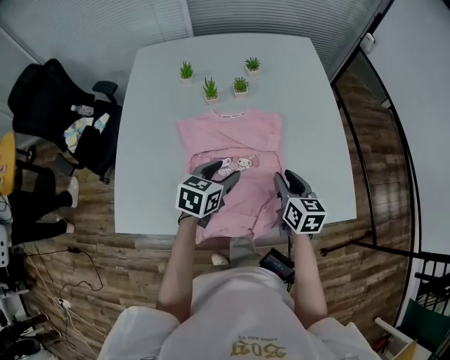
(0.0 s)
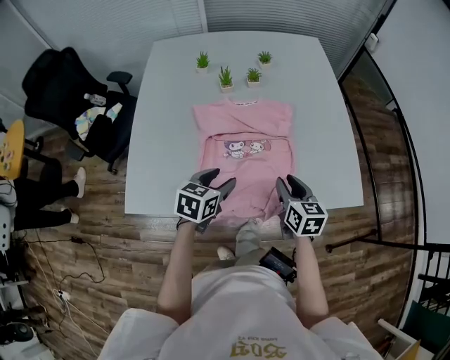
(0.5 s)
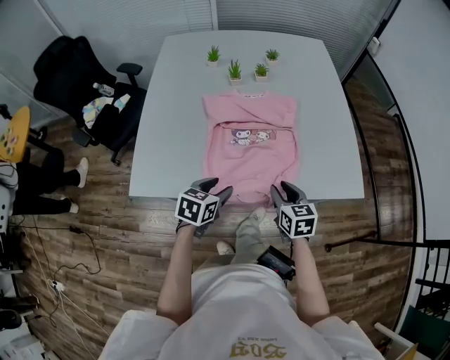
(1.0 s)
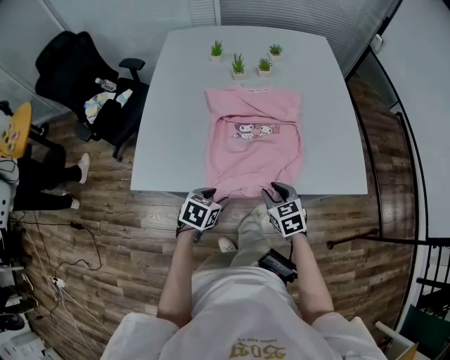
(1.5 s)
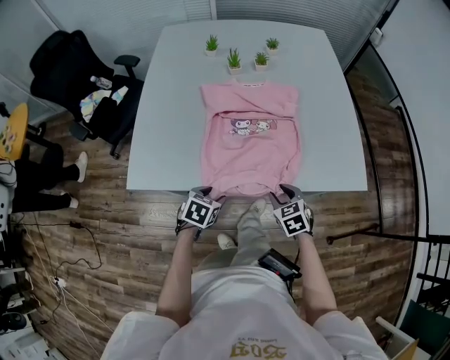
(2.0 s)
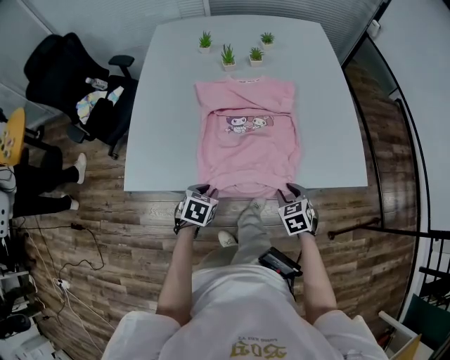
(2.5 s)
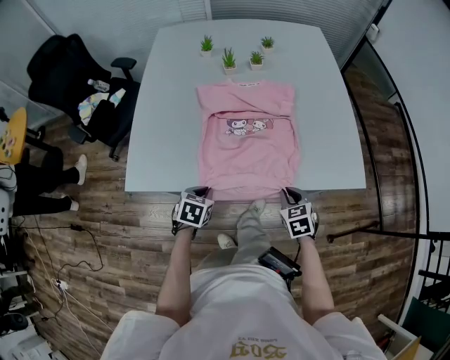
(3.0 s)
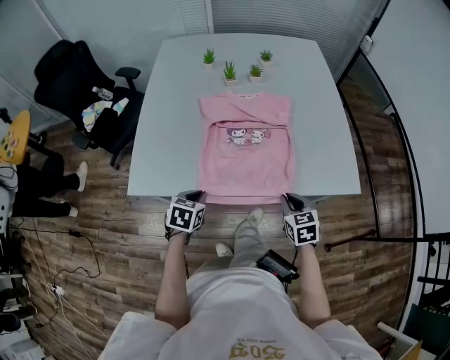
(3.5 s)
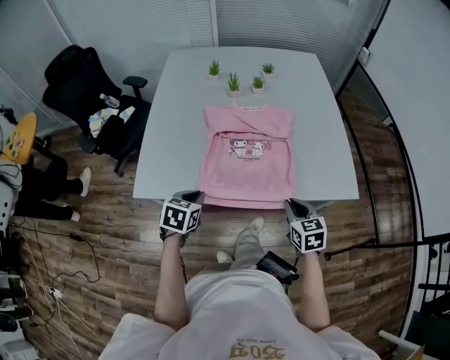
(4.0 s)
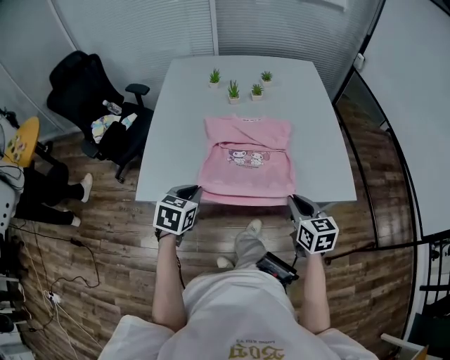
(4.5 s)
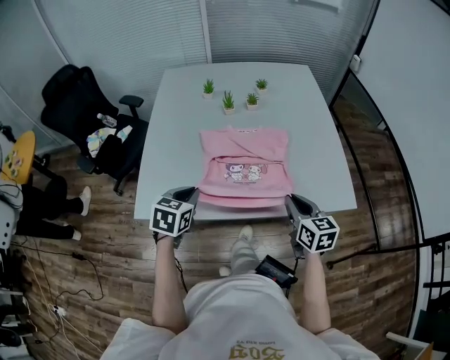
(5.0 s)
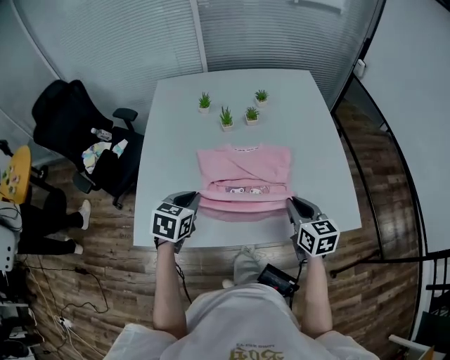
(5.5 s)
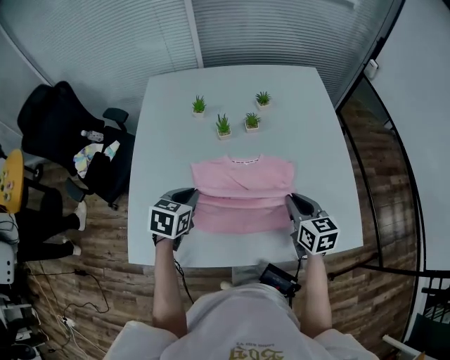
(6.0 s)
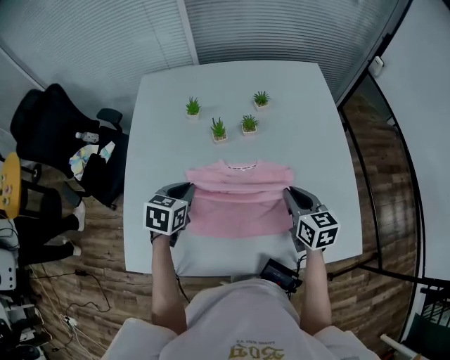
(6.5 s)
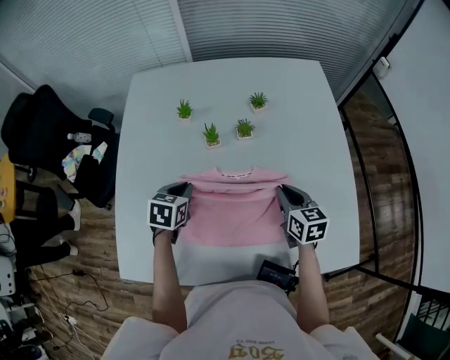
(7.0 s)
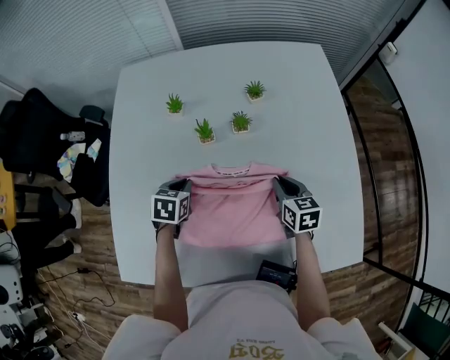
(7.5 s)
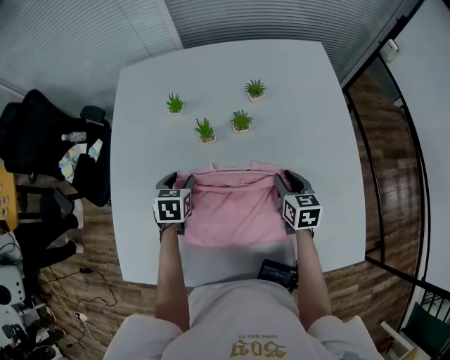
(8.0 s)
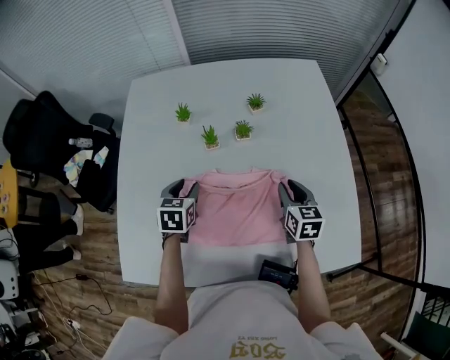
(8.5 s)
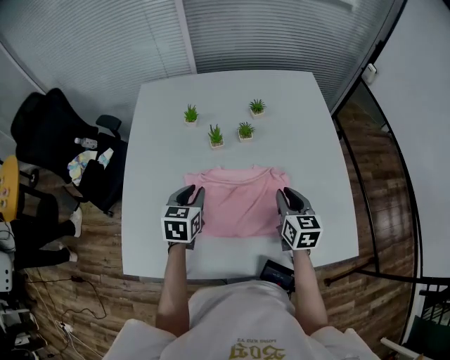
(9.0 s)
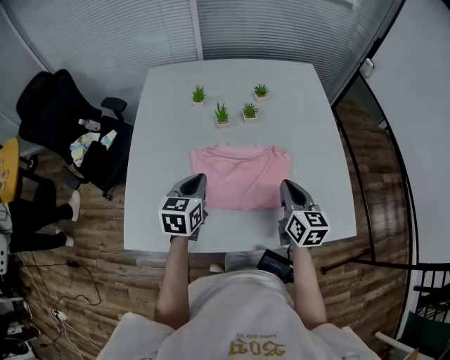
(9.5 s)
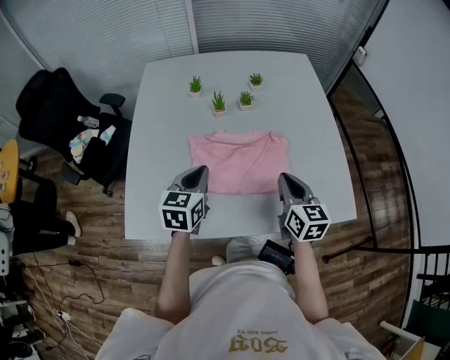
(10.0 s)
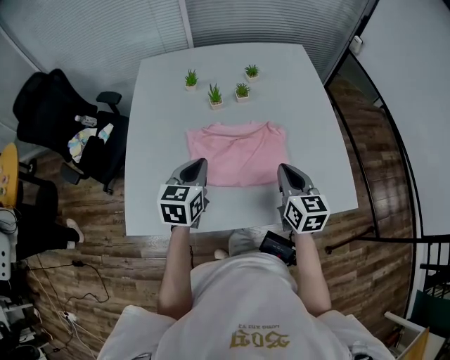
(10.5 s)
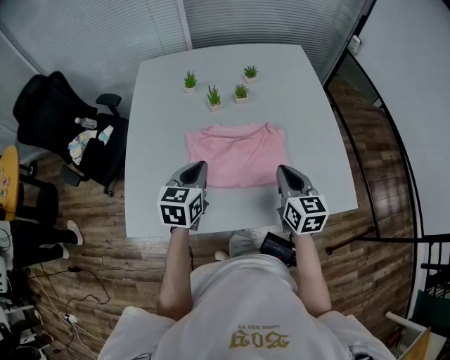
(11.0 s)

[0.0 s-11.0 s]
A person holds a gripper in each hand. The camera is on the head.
0.0 to 2.0 s: Both grippers travel together backward and downward, approximately 25 cm. The left gripper changes its angle by approximately 20 degrees. The right gripper rotates roughly 40 degrees.
2.0 to 3.5 s: The left gripper changes place by approximately 5 cm, and closes up. Meanwhile the right gripper shifts some 5 cm upward, and closes up.
3.5 to 5.5 s: Both grippers move forward and upward, roughly 20 cm. The right gripper changes its angle by some 20 degrees.
5.5 to 7.5 s: The two grippers go approximately 30 cm forward and downward.
7.5 to 9.0 s: The grippers both shift upward and backward by roughly 15 cm. The left gripper turns by about 20 degrees.
9.0 to 11.0 s: The grippers both shift backward and upward by some 15 cm.

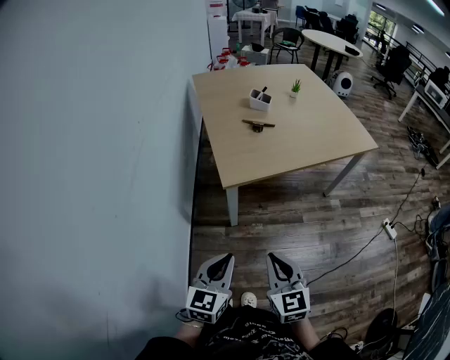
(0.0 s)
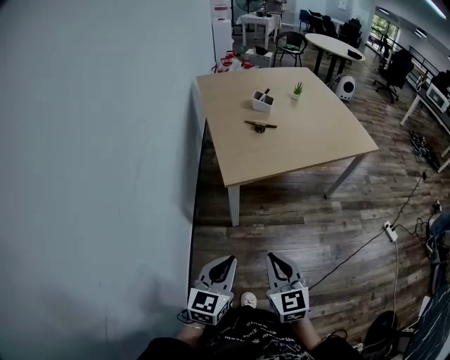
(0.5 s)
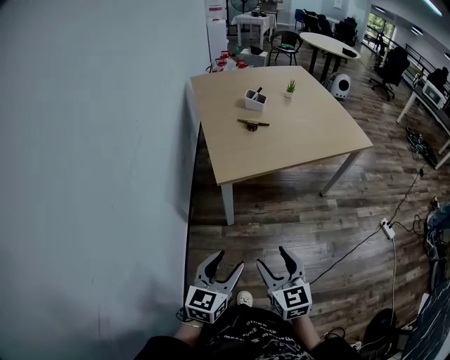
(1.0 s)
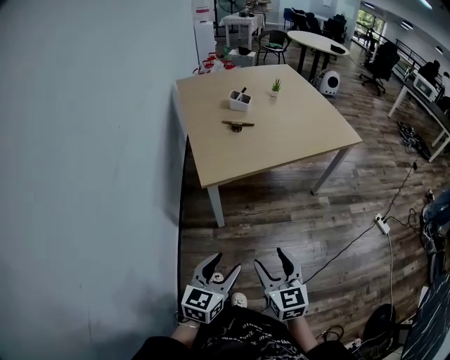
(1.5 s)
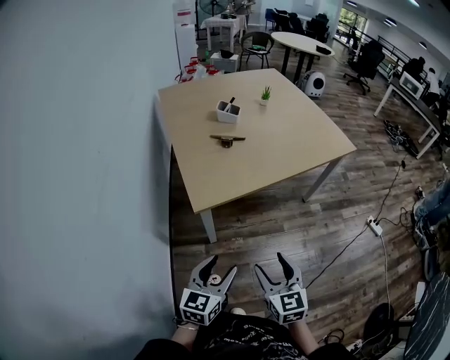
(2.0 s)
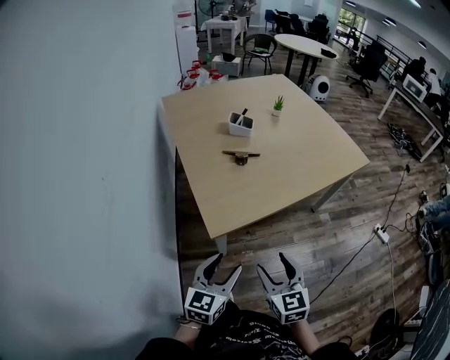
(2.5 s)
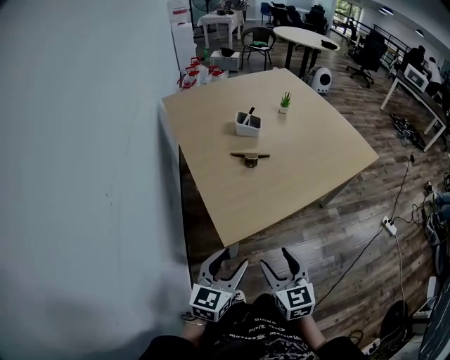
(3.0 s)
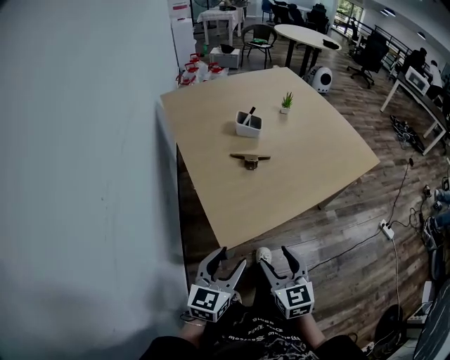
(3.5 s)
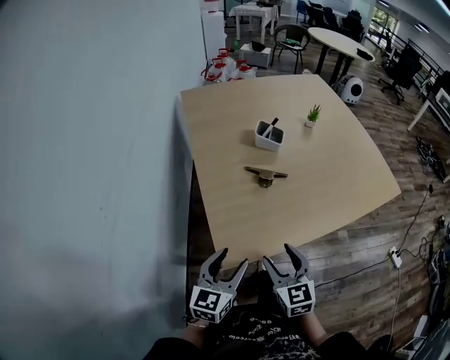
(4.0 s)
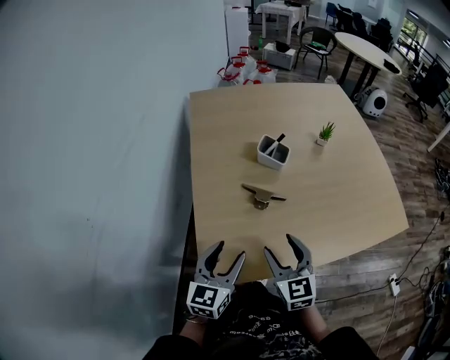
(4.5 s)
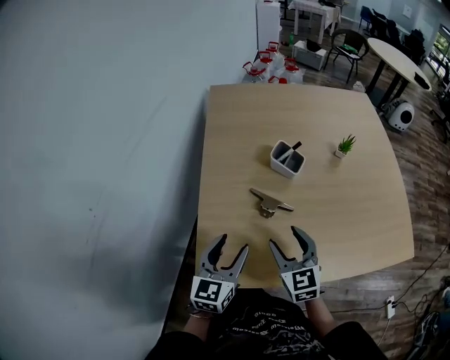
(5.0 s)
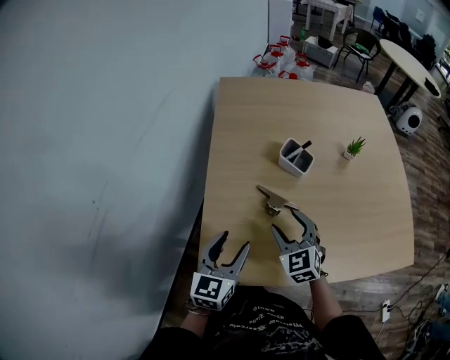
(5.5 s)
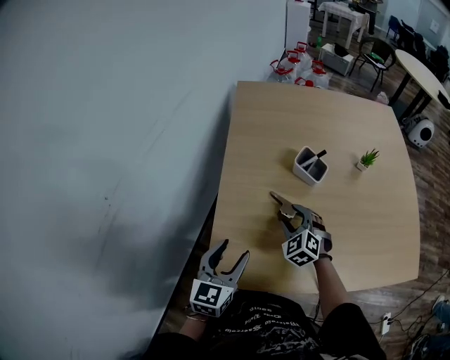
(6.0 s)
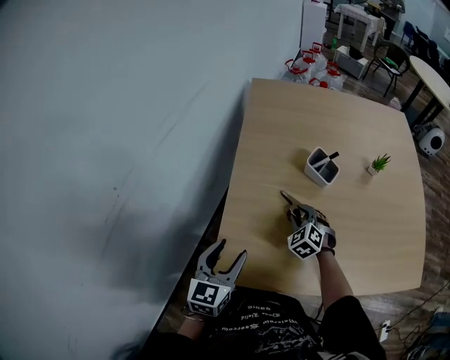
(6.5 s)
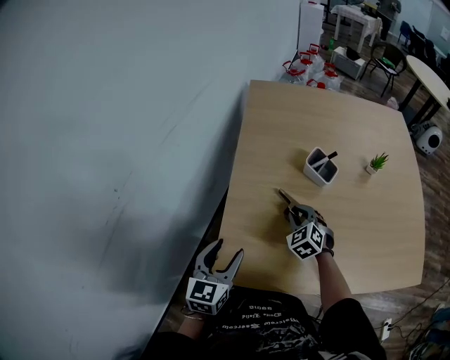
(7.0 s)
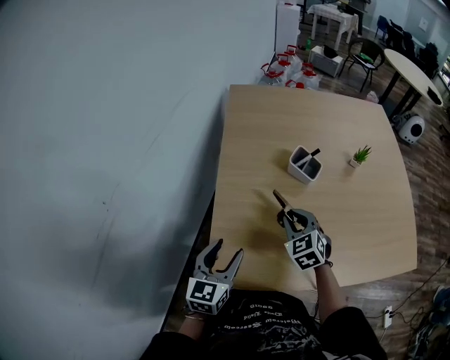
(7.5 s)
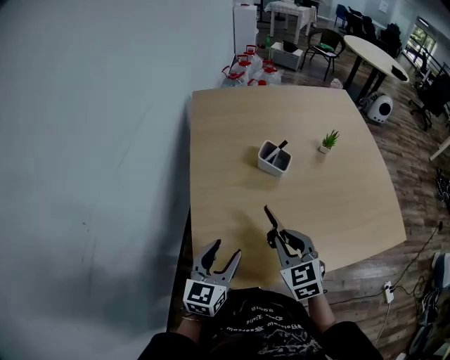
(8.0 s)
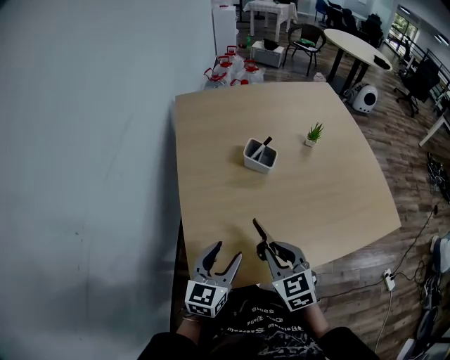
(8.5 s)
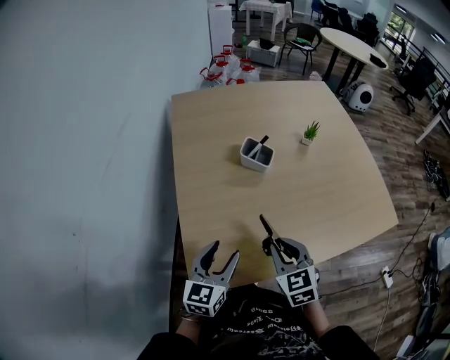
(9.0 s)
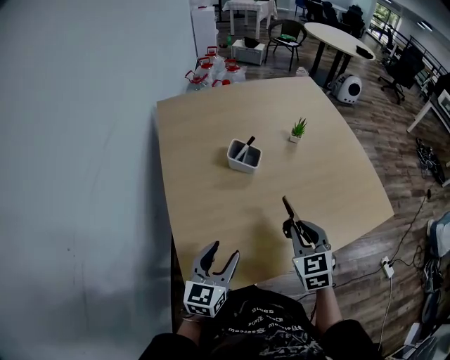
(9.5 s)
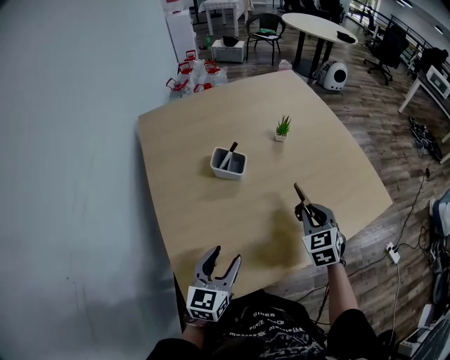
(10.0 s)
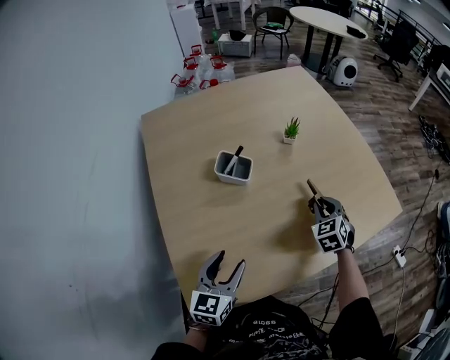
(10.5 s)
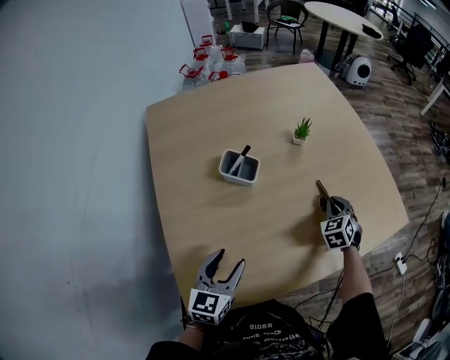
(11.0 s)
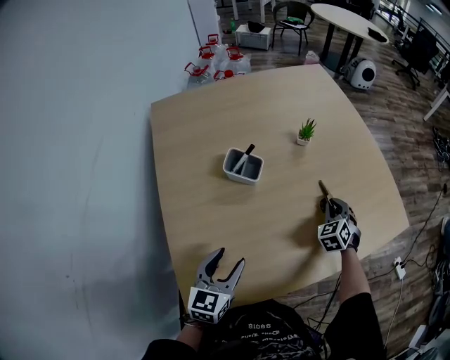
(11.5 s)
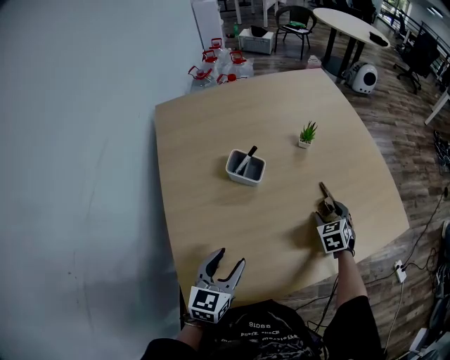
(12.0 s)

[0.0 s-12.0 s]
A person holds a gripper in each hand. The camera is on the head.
0.0 to 2.0 s: Both grippers travel together forward and to the right, about 10 cm. The right gripper opens its fingers. The left gripper opens up.
2.0 to 4.0 s: The left gripper shifts approximately 25 cm forward. The right gripper goes some 30 cm forward and to the left.
4.0 to 6.0 s: The left gripper goes approximately 15 cm forward, and turns by about 20 degrees. The right gripper heads forward, covering approximately 30 cm, and twists approximately 50 degrees counterclockwise, seen from behind.
6.0 to 8.0 s: The right gripper moves backward and upward, roughly 15 cm, changes its angle by about 30 degrees, and closes its fingers.
8.0 to 10.0 s: The right gripper shifts about 20 cm to the right and forward, and changes its angle by approximately 30 degrees. Meanwhile the left gripper heads to the right, covering approximately 10 cm.
10.0 to 12.0 s: The right gripper shifts approximately 15 cm downward and forward, and opens up.

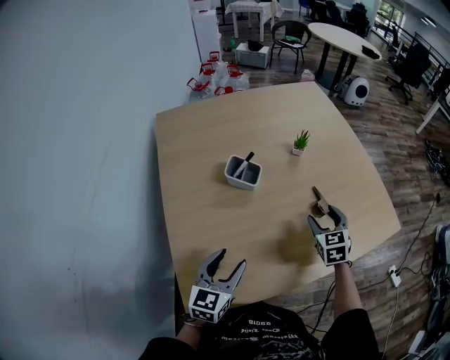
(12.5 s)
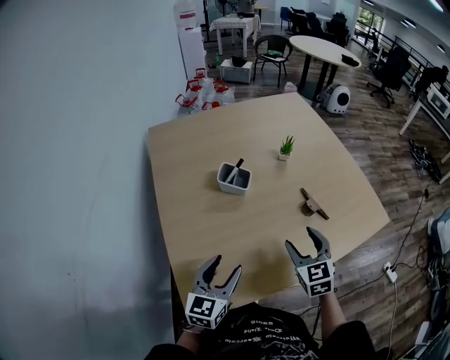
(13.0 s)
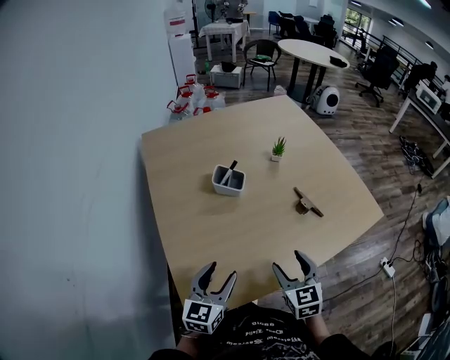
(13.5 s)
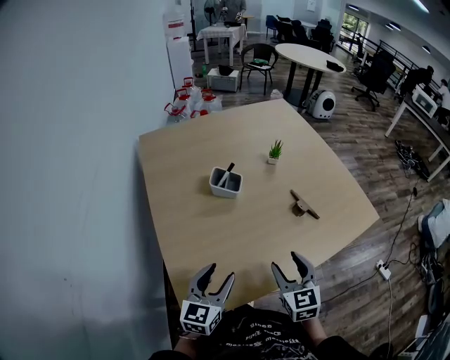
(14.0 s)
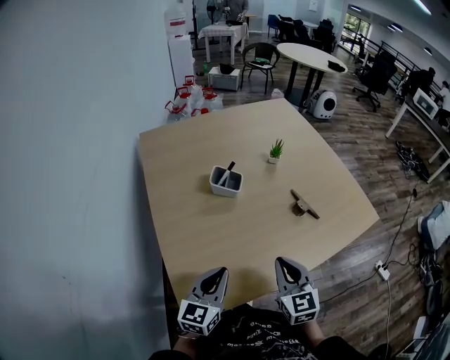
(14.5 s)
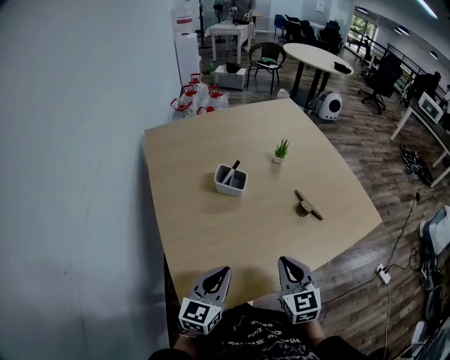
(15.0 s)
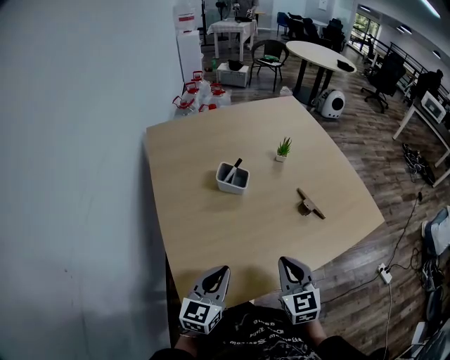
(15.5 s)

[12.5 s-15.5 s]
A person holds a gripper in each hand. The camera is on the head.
12.5 to 14.0 s: The right gripper shifts roughly 20 cm backward and to the left; the left gripper shifts approximately 5 cm backward.
14.0 to 15.5 s: The left gripper closes; the right gripper closes.
